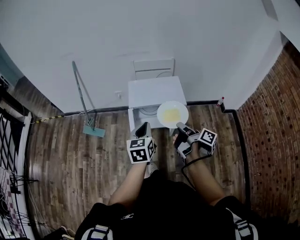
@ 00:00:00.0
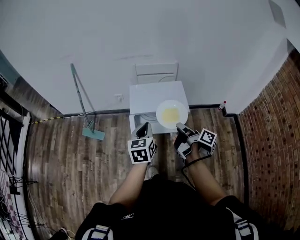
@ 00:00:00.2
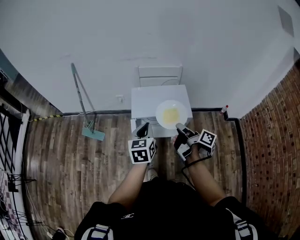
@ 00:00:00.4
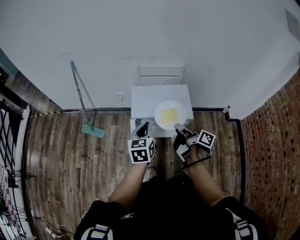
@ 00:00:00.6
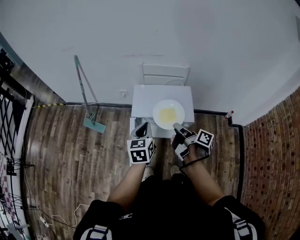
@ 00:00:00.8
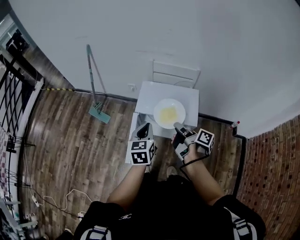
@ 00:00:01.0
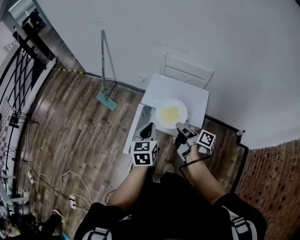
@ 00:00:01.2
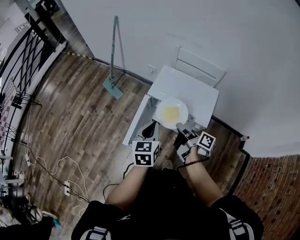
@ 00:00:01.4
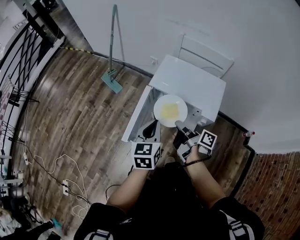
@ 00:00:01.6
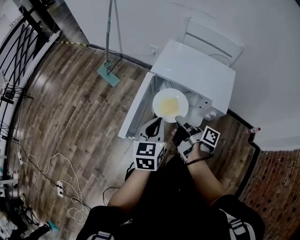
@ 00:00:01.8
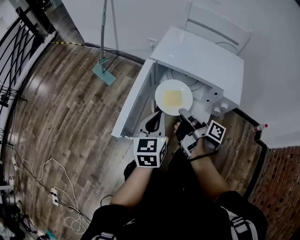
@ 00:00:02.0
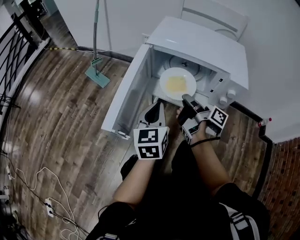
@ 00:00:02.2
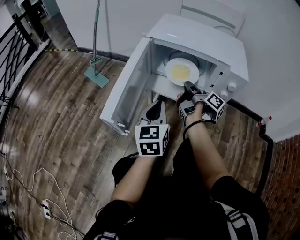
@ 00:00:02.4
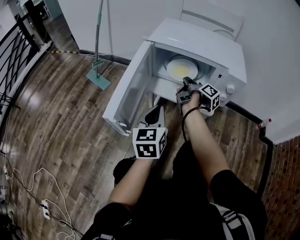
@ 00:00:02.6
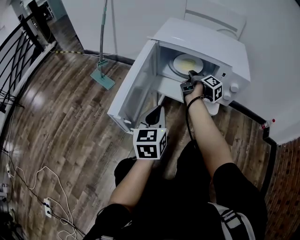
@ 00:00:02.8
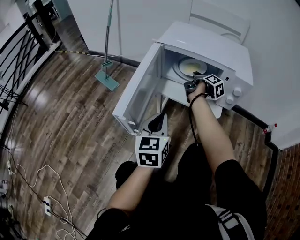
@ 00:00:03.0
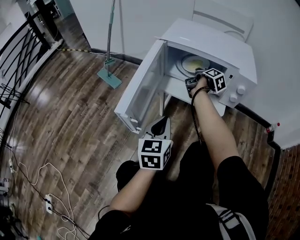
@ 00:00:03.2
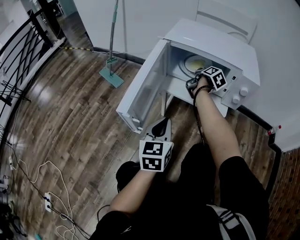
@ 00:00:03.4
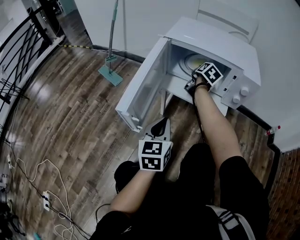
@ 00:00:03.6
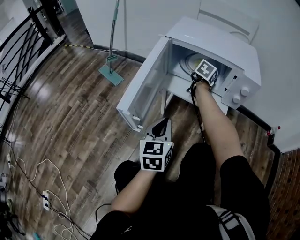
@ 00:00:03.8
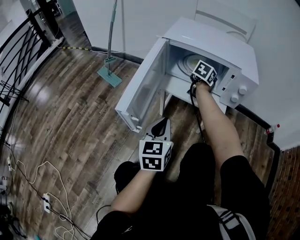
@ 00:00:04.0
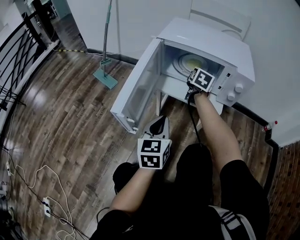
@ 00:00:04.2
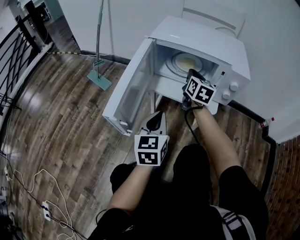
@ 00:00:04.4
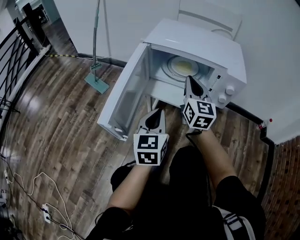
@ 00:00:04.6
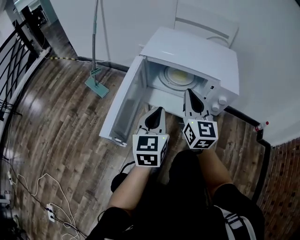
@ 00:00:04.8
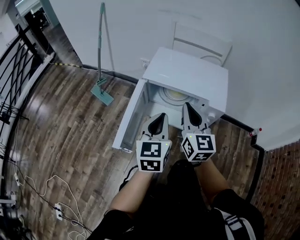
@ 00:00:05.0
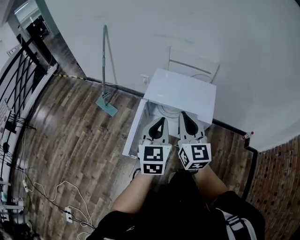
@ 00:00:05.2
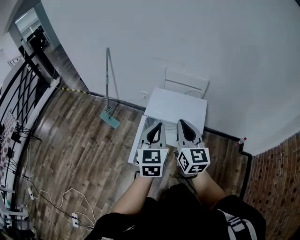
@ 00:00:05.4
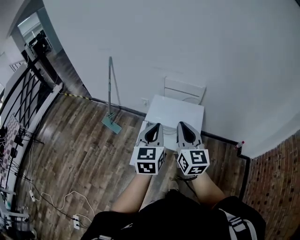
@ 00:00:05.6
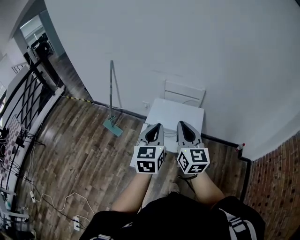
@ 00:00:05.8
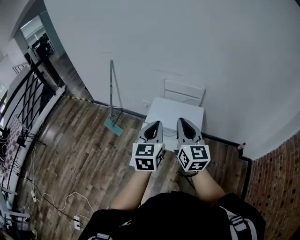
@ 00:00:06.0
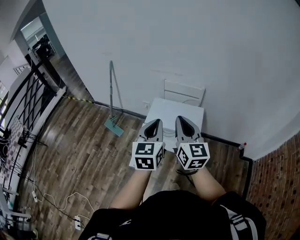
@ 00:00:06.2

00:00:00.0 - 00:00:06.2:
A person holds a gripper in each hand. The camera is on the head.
00:00:00.0 - 00:00:01.6: The left gripper goes some 15 cm downward, and changes its angle by about 30 degrees.
00:00:01.6 - 00:00:03.2: The left gripper moves downward, some 30 cm.
00:00:03.2 - 00:00:04.6: The left gripper ends up approximately 5 cm from where it was.
00:00:04.6 - 00:00:06.2: The left gripper is displaced upward by approximately 60 cm.

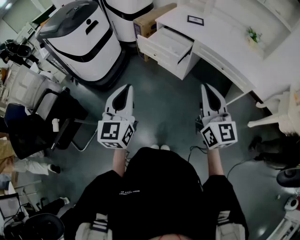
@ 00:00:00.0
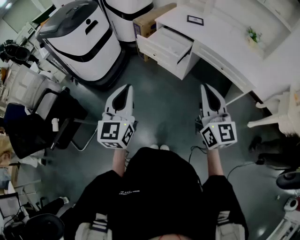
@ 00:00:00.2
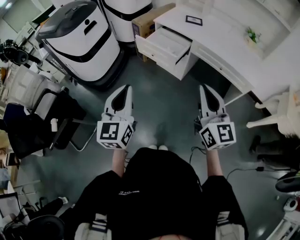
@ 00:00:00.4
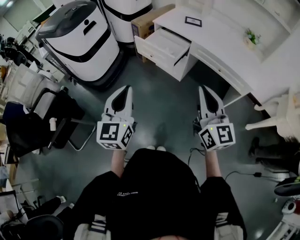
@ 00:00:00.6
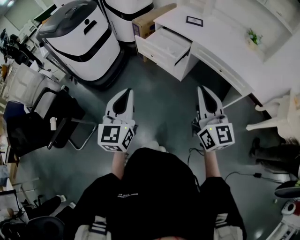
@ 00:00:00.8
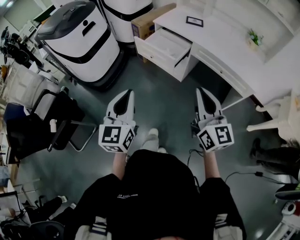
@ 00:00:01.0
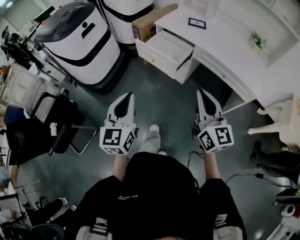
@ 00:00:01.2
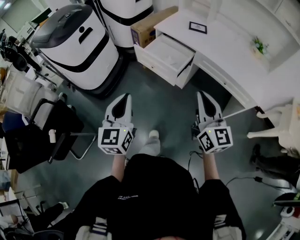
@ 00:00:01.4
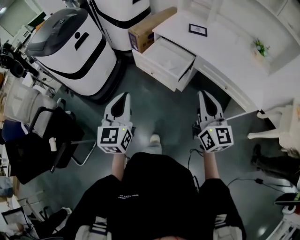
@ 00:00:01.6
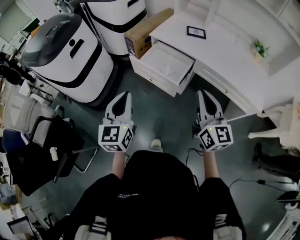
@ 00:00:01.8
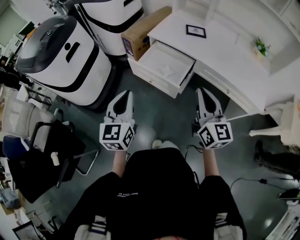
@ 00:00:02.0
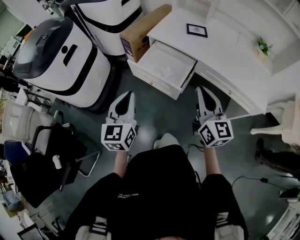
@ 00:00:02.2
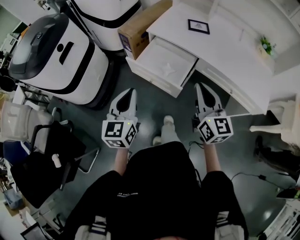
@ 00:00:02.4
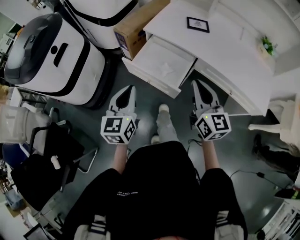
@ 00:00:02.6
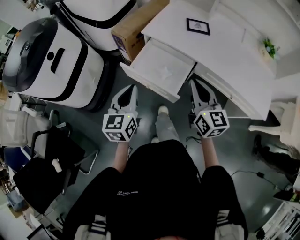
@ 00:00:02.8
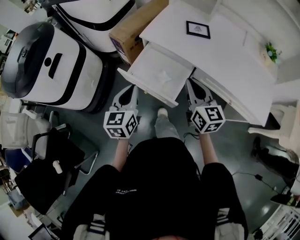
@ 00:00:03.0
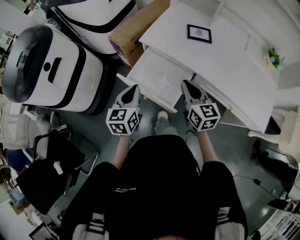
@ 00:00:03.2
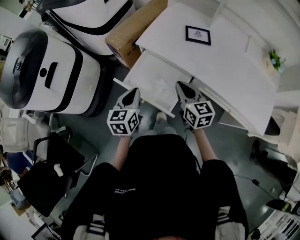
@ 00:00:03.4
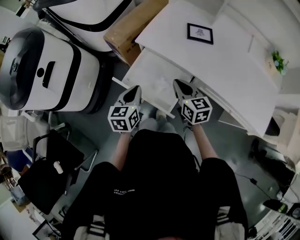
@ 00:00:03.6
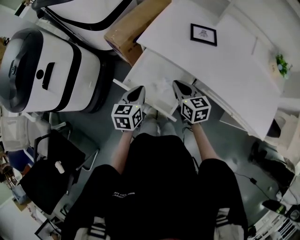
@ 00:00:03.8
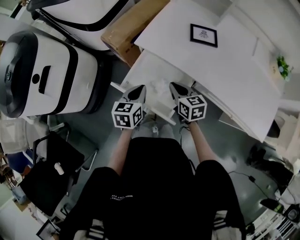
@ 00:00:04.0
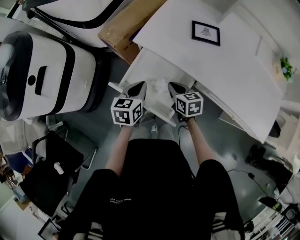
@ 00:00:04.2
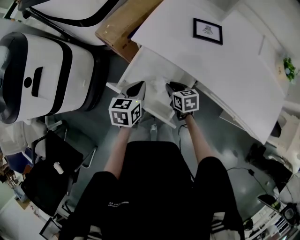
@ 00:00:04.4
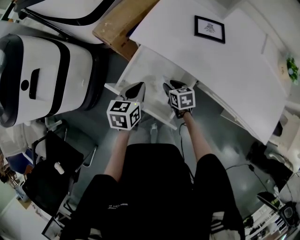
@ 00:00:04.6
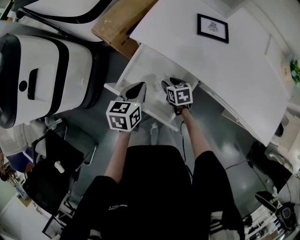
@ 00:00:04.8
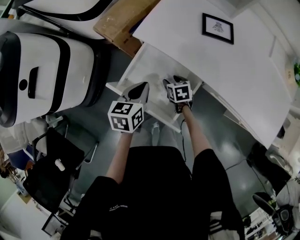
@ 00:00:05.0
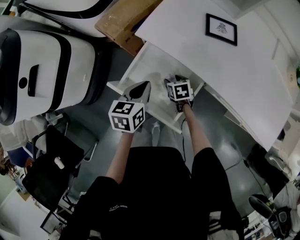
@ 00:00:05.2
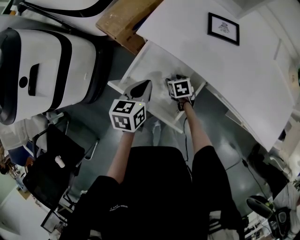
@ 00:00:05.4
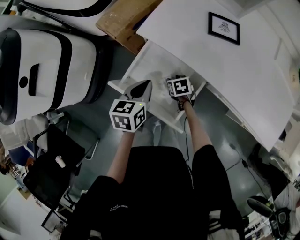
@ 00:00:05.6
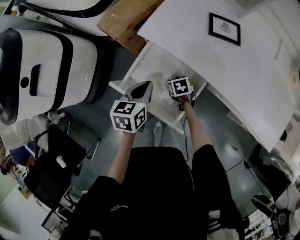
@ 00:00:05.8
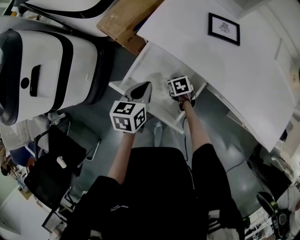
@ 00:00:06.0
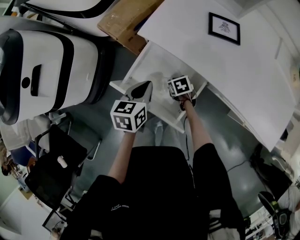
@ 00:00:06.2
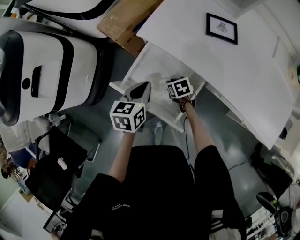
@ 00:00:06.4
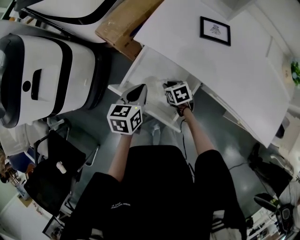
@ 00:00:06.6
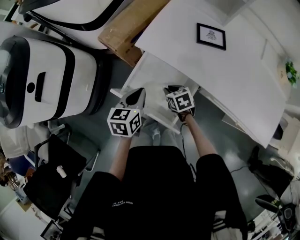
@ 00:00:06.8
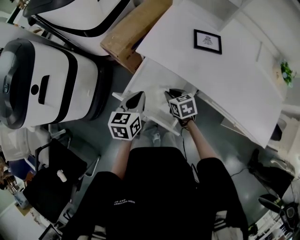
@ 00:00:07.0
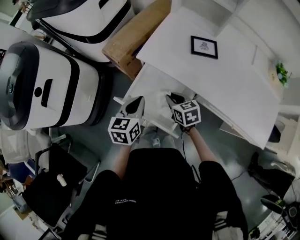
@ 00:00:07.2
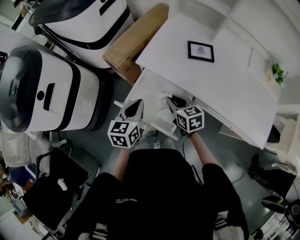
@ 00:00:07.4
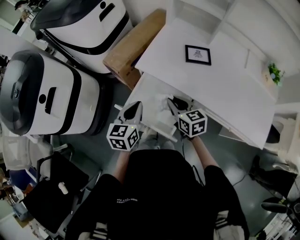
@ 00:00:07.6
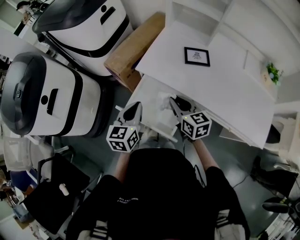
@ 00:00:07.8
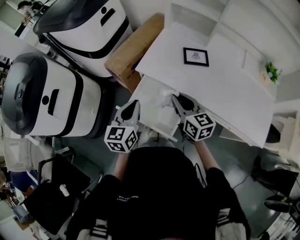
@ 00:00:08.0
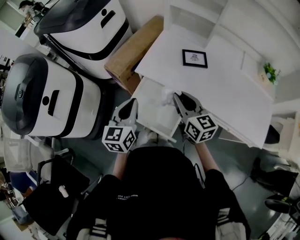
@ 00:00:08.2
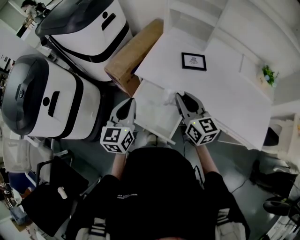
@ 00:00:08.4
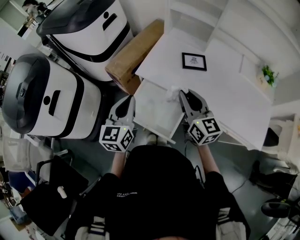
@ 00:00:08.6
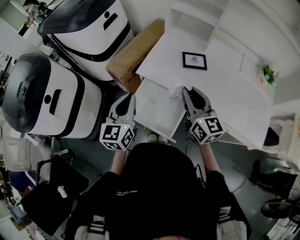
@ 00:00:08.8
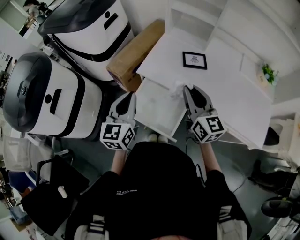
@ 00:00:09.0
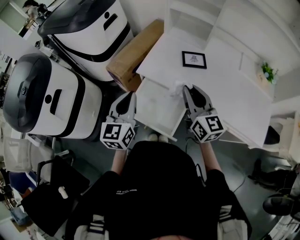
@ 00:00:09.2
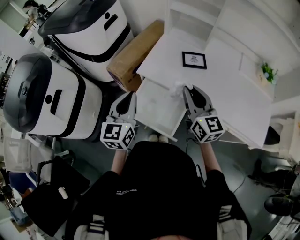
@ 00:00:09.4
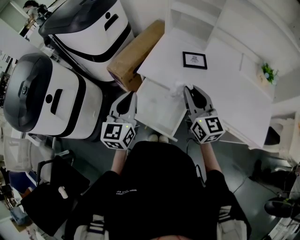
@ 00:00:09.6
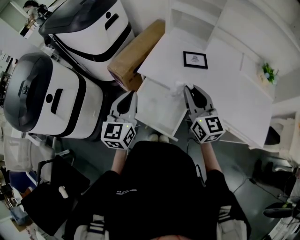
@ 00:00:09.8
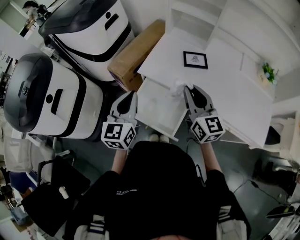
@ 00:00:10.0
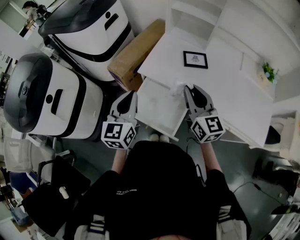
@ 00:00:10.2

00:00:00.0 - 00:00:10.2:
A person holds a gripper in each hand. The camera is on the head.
00:00:00.0 - 00:00:01.4: The two grippers go about 15 cm forward.
00:00:01.4 - 00:00:03.0: Both grippers travel together forward, roughly 35 cm.
00:00:03.0 - 00:00:04.4: The right gripper is displaced downward and forward by some 30 cm, and tips its fingers downward by some 30 degrees. Meanwhile the left gripper heads forward, downward and to the right, covering about 20 cm, and rotates about 20 degrees.
00:00:04.4 - 00:00:05.8: The right gripper is displaced downward by about 10 cm, and opens.
00:00:05.8 - 00:00:07.2: The right gripper shifts some 20 cm upward, rotates about 20 degrees, and closes up, while the left gripper moves upward, some 10 cm.
00:00:07.2 - 00:00:08.8: The right gripper moves upward, about 25 cm, and tilts its fingers about 40 degrees upward; the left gripper travels upward by approximately 15 cm, and rotates some 20 degrees.
00:00:08.8 - 00:00:10.2: The two grippers keep their place.

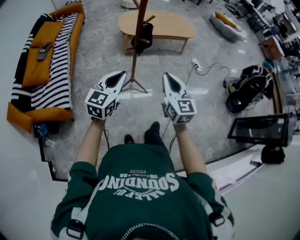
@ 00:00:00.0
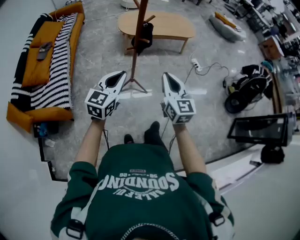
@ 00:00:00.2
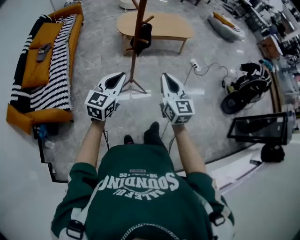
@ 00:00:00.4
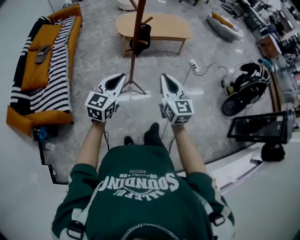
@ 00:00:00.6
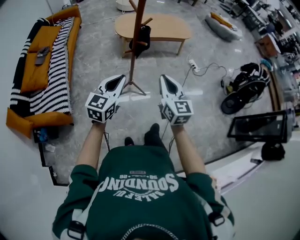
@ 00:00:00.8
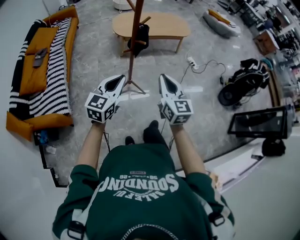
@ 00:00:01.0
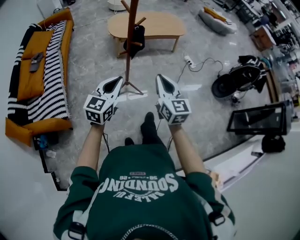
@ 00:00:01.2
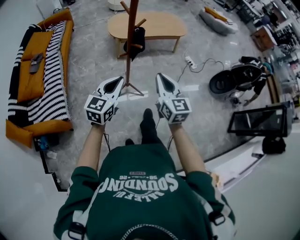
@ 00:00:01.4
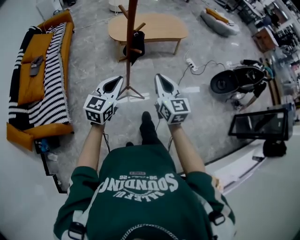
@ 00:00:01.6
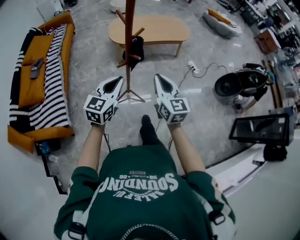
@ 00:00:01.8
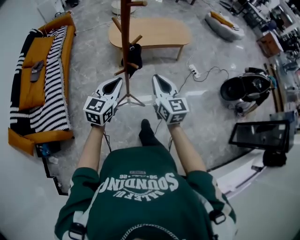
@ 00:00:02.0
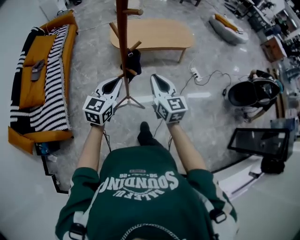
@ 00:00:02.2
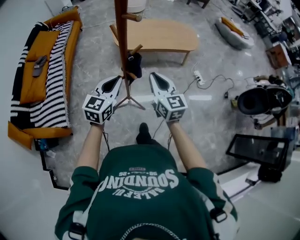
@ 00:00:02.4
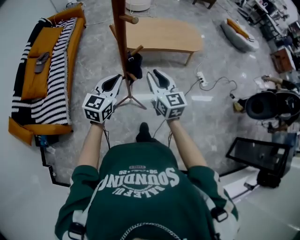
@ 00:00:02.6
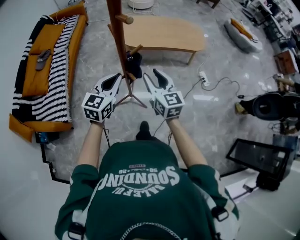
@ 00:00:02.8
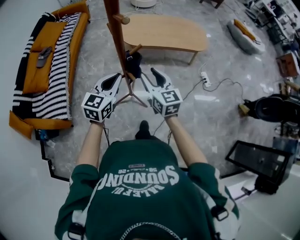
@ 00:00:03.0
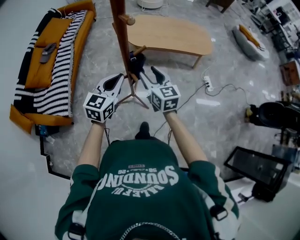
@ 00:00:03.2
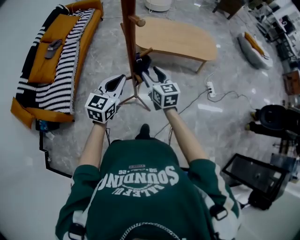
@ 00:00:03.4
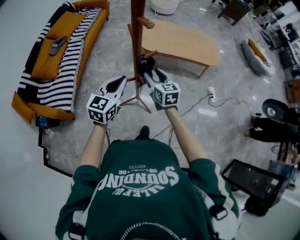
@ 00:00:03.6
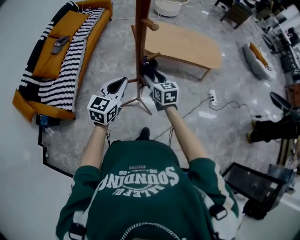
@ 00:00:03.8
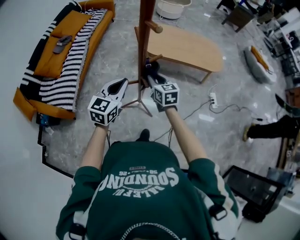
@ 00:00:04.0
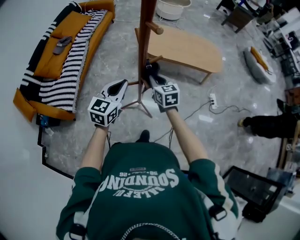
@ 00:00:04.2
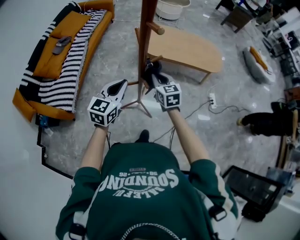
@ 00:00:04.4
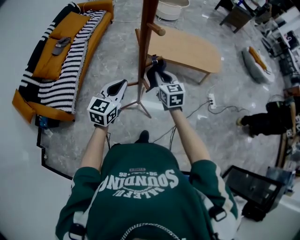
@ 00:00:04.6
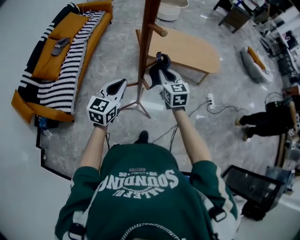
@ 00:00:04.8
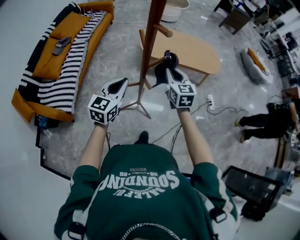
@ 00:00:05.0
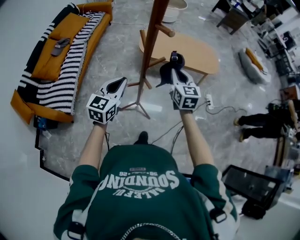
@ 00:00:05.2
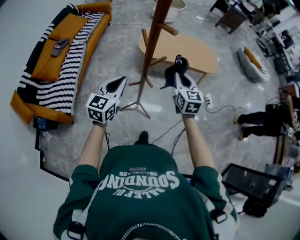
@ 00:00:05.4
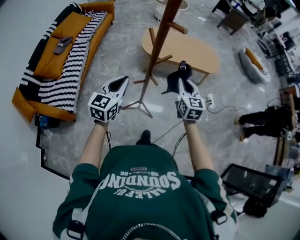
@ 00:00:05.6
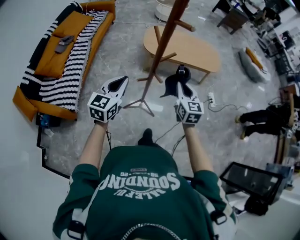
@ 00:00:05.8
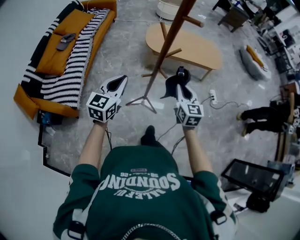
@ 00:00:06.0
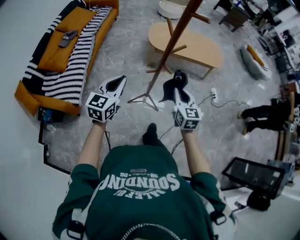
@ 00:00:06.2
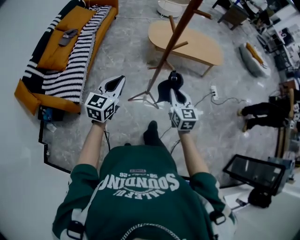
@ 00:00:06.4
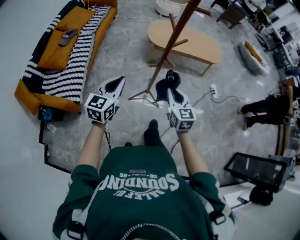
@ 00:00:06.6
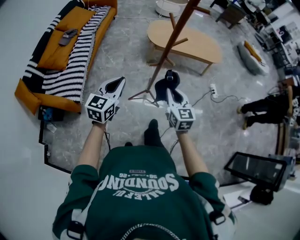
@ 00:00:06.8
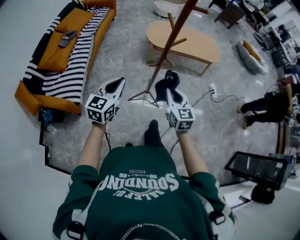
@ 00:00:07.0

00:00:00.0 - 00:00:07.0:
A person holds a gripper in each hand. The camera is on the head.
00:00:00.0 - 00:00:01.4: The grippers make only small movements.
00:00:01.4 - 00:00:02.8: Both grippers move forward, some 25 cm. The right gripper opens.
00:00:02.8 - 00:00:04.2: The right gripper moves downward, forward and to the left, about 15 cm, rotates approximately 20 degrees, and closes its fingers.
00:00:04.2 - 00:00:05.6: The left gripper shifts by roughly 5 cm; the right gripper goes roughly 10 cm to the right and upward, and turns by roughly 20 degrees.
00:00:05.6 - 00:00:07.0: The two grippers go approximately 20 cm backward and to the left.
